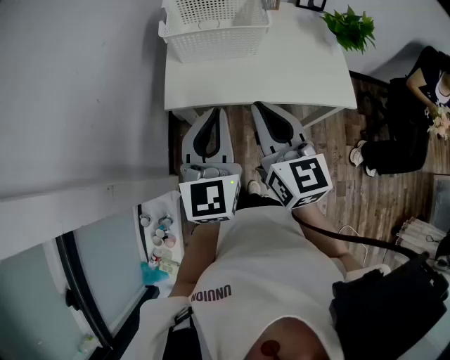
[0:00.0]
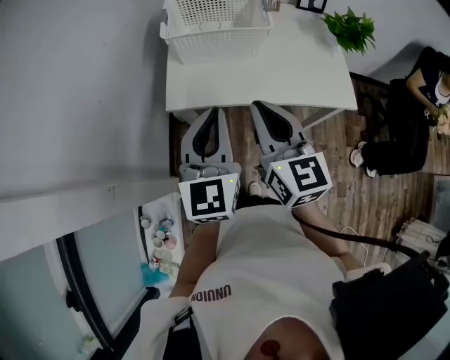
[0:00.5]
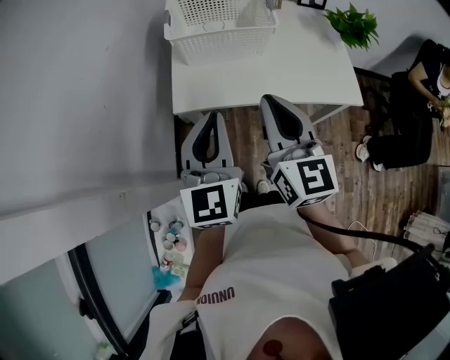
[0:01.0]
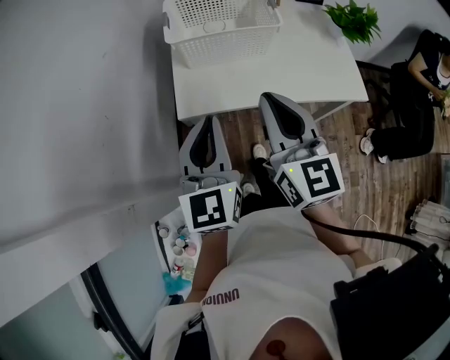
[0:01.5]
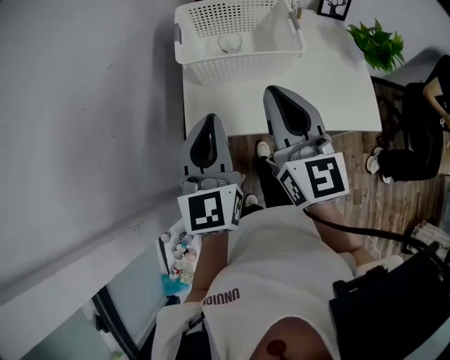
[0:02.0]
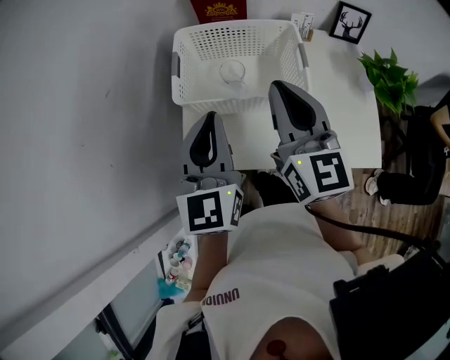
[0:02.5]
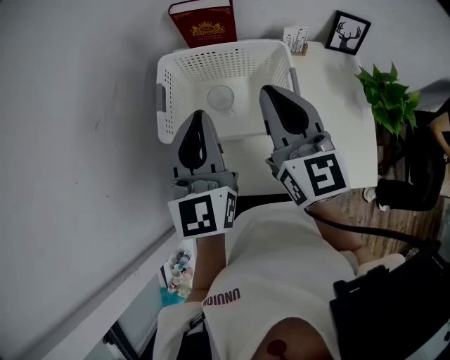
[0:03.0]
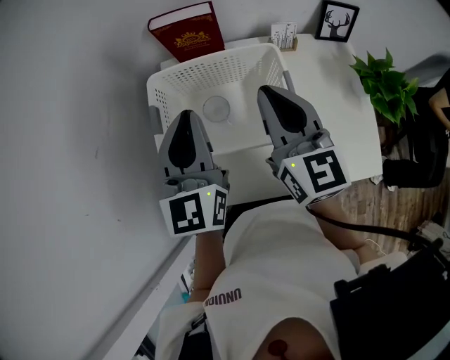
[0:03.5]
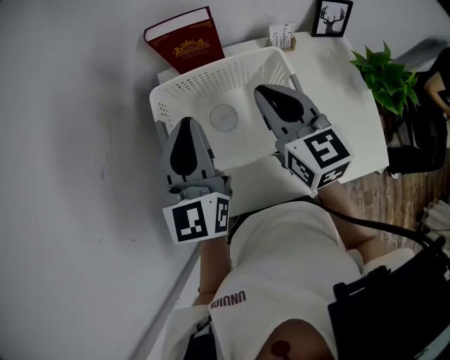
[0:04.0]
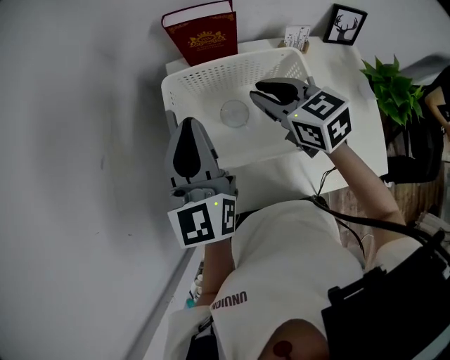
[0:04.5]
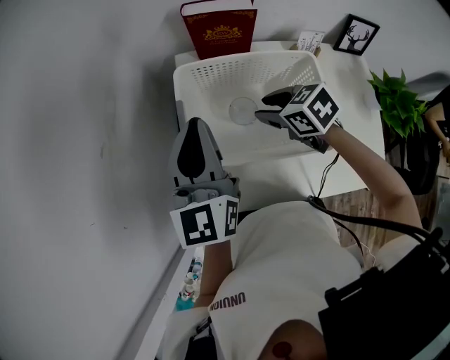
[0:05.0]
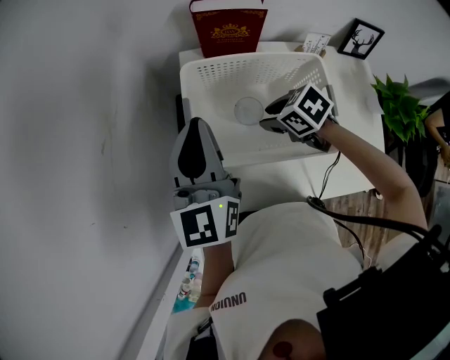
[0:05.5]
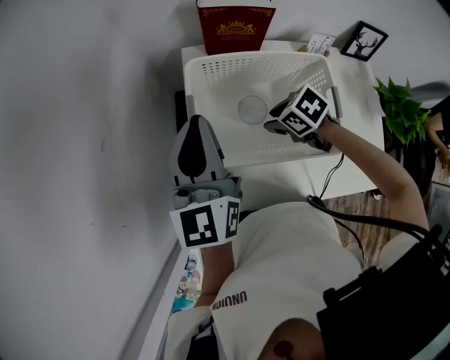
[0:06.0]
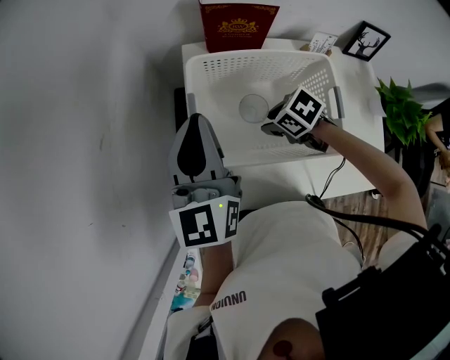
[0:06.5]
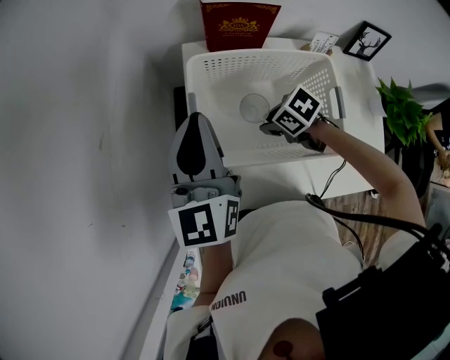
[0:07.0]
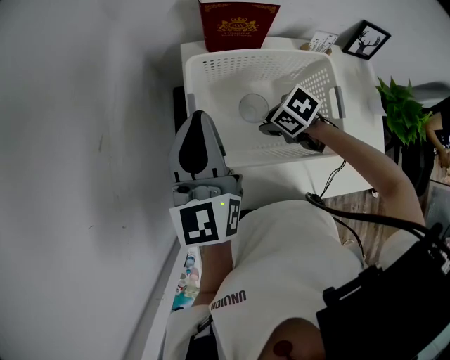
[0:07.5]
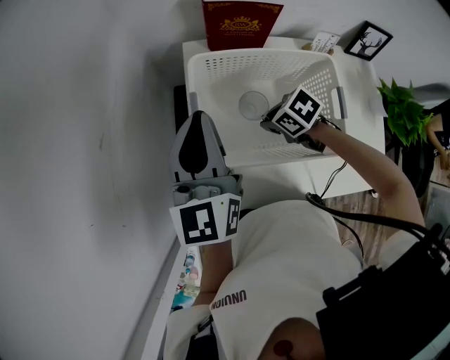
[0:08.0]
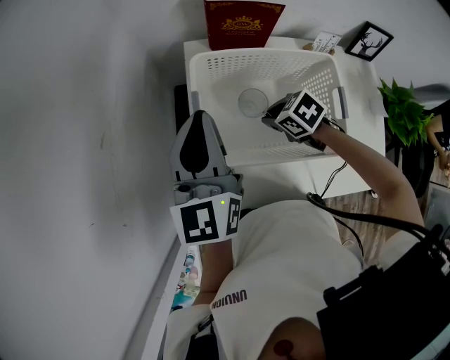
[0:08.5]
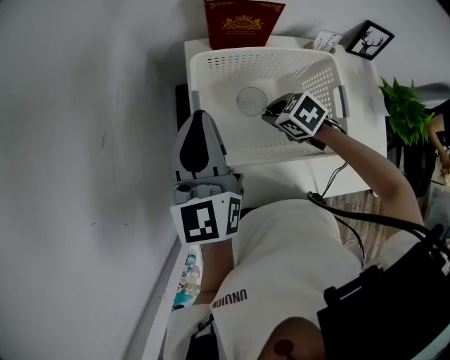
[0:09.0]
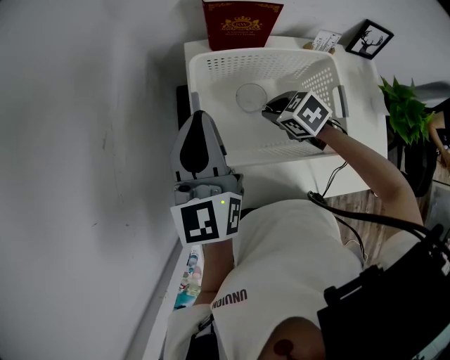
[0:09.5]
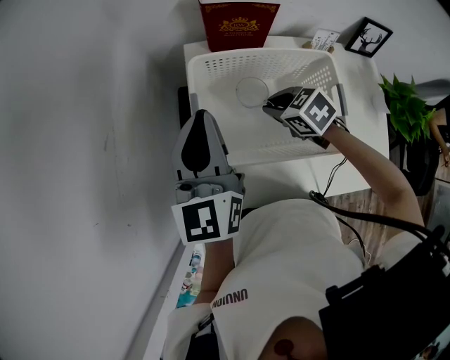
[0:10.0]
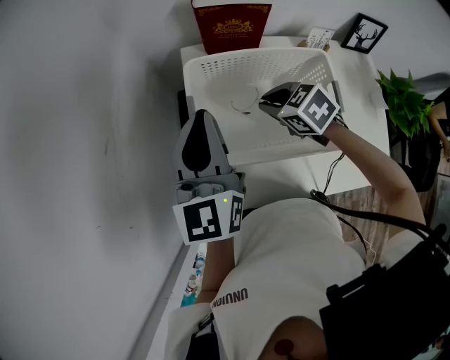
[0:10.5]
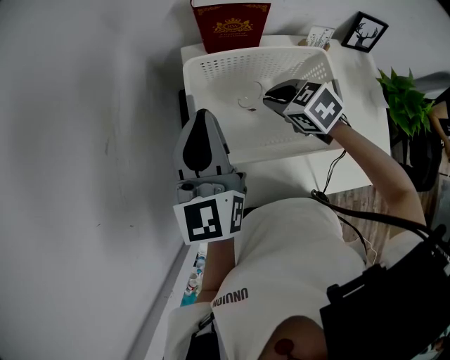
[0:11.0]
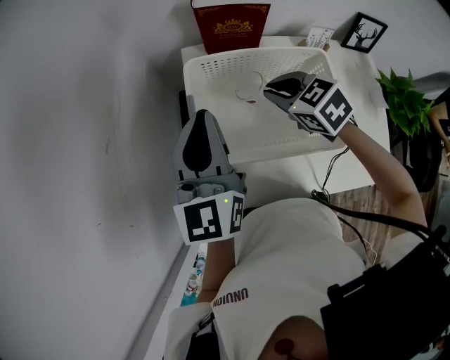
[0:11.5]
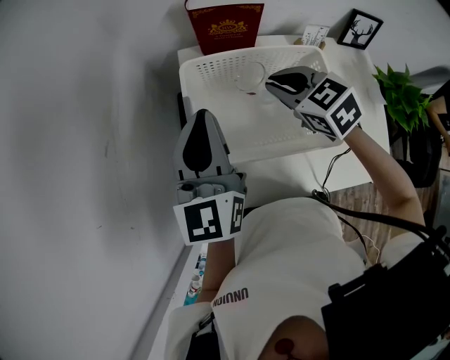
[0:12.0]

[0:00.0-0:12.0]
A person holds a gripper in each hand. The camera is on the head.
0.0 to 2.0 s: The left gripper shifts some 15 cm forward and to the left. Meanwhile the right gripper shifts about 15 cm forward.
2.0 to 4.0 s: The two grippers go approximately 30 cm forward.
4.0 to 6.0 s: The left gripper ends up about 10 cm from where it was. Meanwhile the right gripper goes about 20 cm downward, tips its fingers downward by approximately 50 degrees, and opens up.
6.0 to 8.0 s: The right gripper closes up.
8.0 to 10.0 s: The right gripper moves upward, some 5 cm.
10.0 to 12.0 s: The right gripper shifts some 10 cm upward.

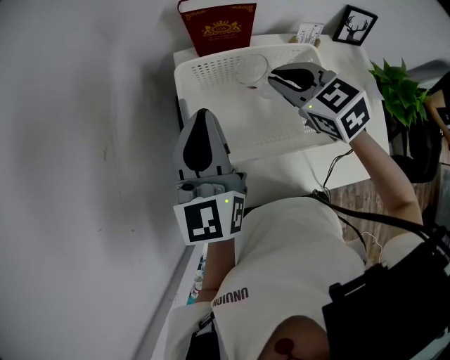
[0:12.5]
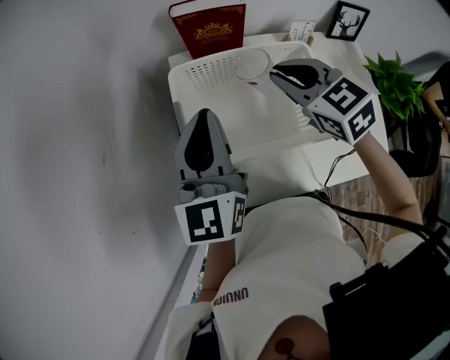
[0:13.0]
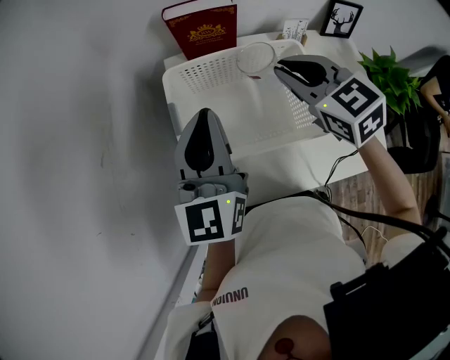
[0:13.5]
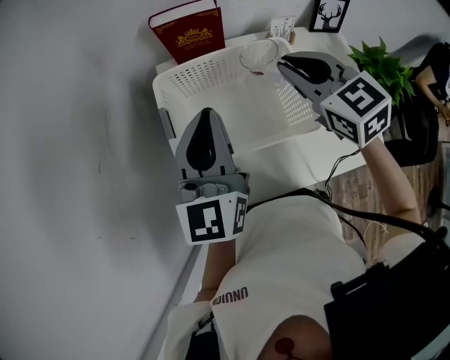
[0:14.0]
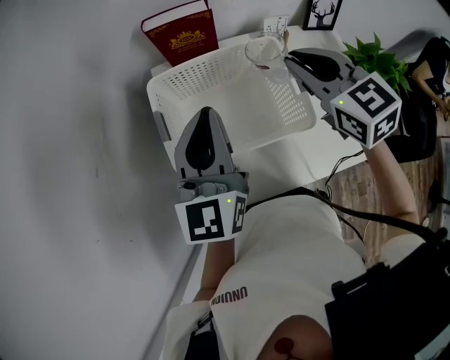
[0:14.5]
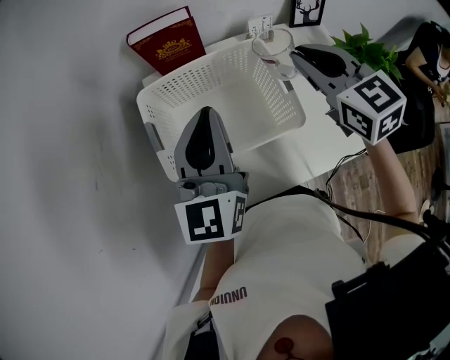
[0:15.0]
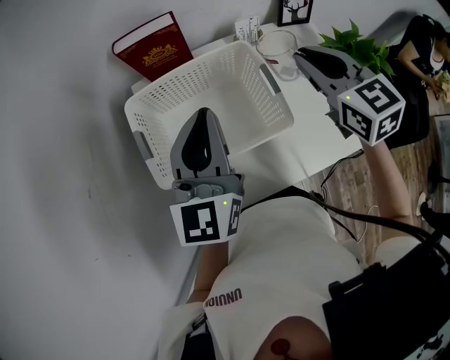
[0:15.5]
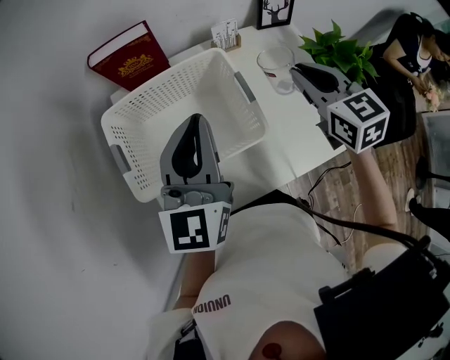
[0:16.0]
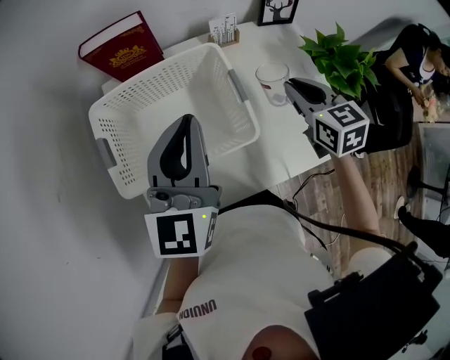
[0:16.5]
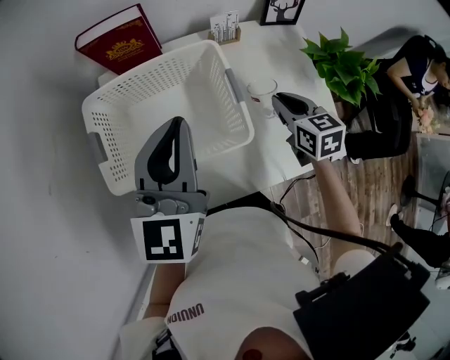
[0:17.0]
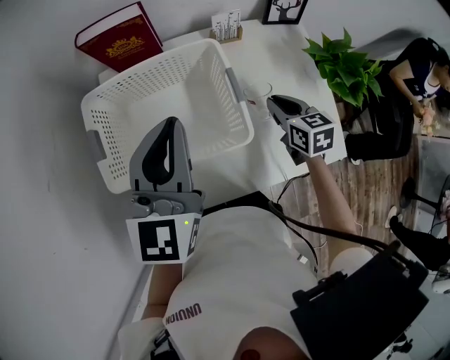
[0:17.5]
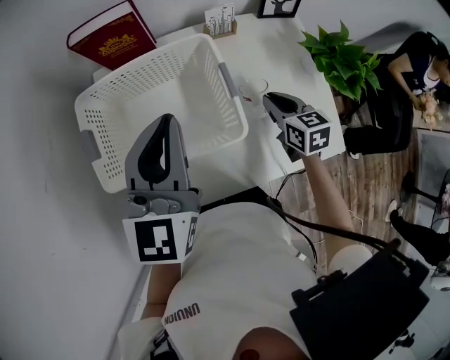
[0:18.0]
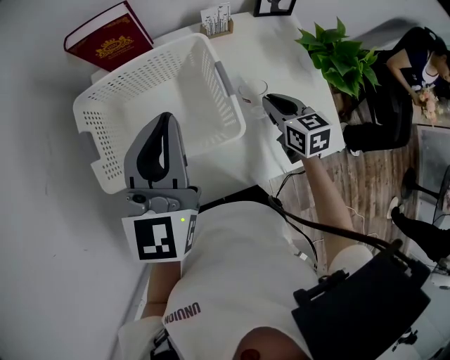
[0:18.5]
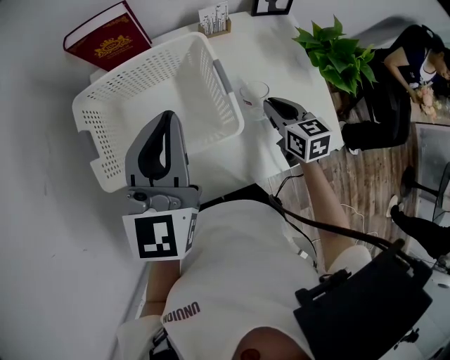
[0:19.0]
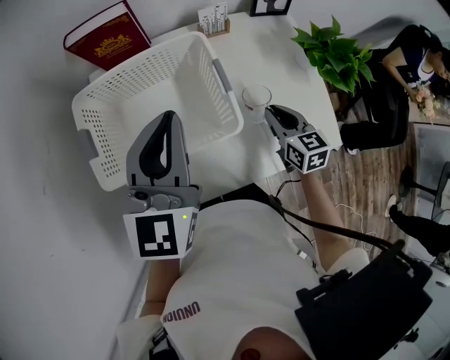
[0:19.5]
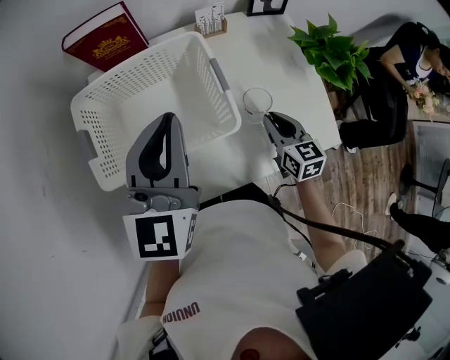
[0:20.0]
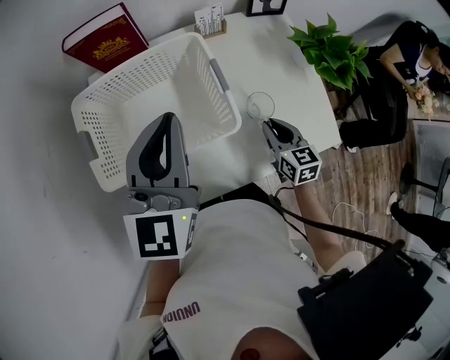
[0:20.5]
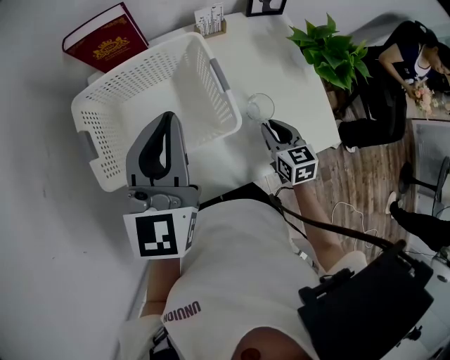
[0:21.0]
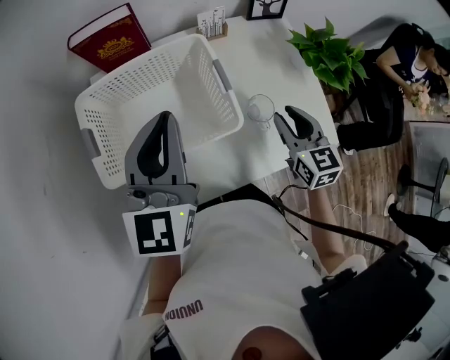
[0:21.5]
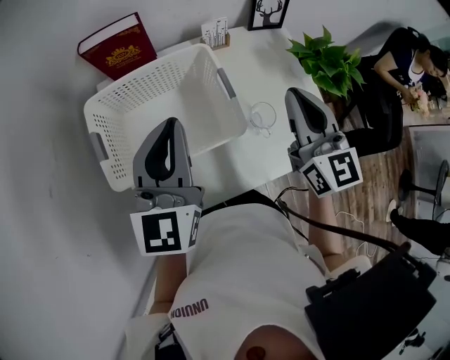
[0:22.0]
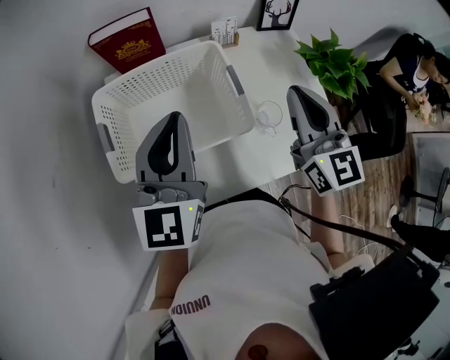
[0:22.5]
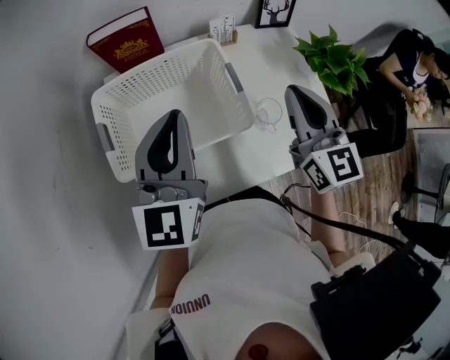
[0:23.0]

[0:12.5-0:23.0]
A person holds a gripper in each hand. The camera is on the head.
12.5 to 14.5 s: The right gripper goes roughly 10 cm to the right and upward, while the left gripper heads to the right, covering some 5 cm.
14.5 to 16.5 s: The right gripper travels to the right and downward by about 20 cm, and rotates roughly 20 degrees; the left gripper is displaced to the right by approximately 10 cm.
16.5 to 19.0 s: The right gripper shifts approximately 10 cm downward.
19.0 to 21.0 s: The right gripper heads backward, covering roughly 5 cm.
21.0 to 23.0 s: The right gripper shifts approximately 25 cm upward, and points its fingers about 30 degrees further upward.

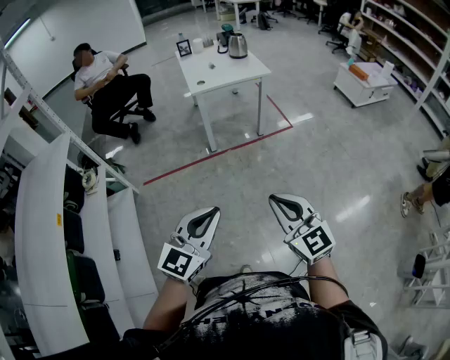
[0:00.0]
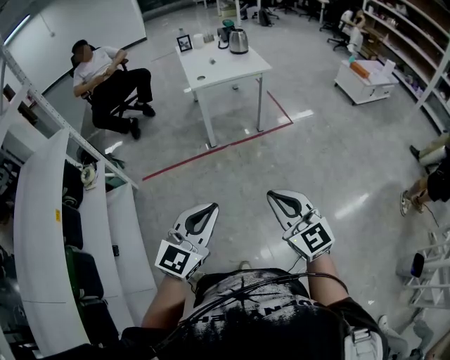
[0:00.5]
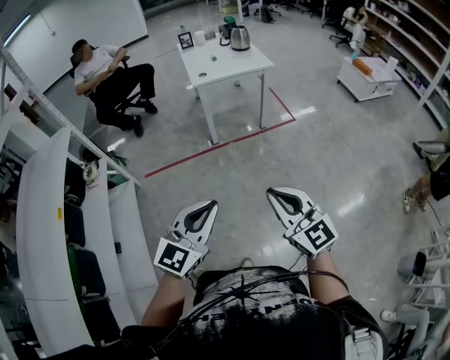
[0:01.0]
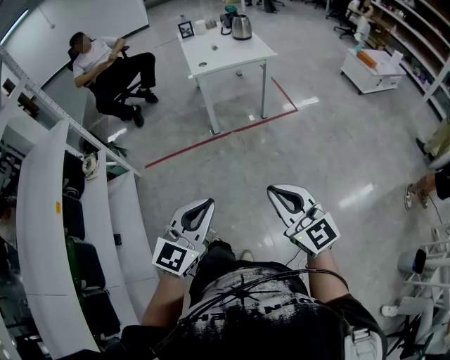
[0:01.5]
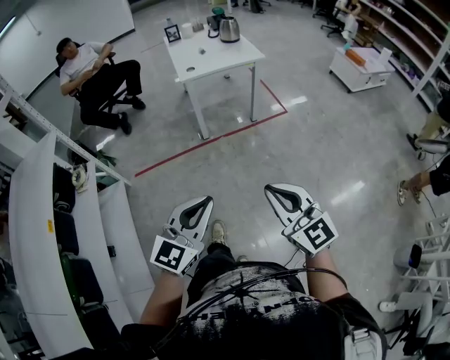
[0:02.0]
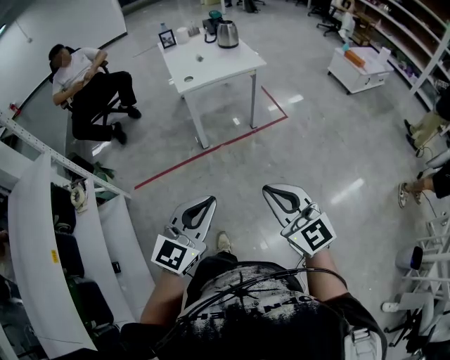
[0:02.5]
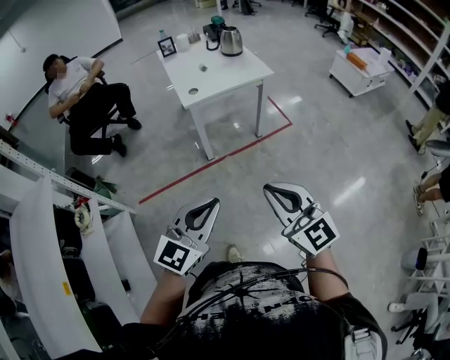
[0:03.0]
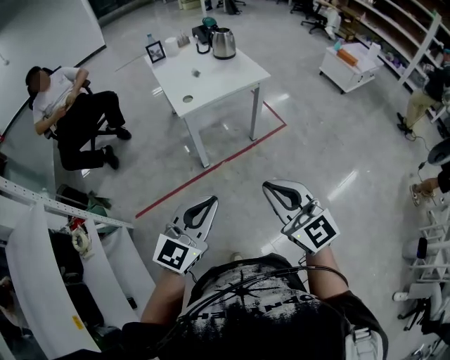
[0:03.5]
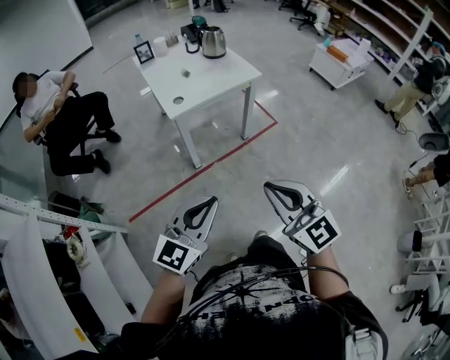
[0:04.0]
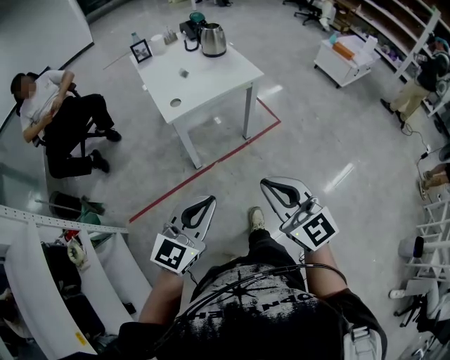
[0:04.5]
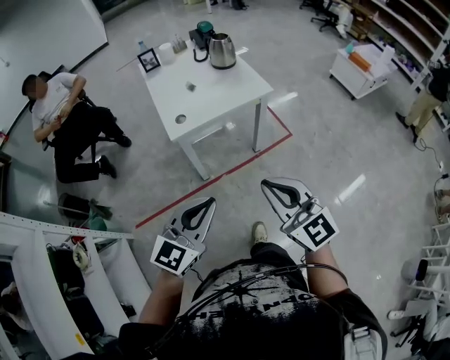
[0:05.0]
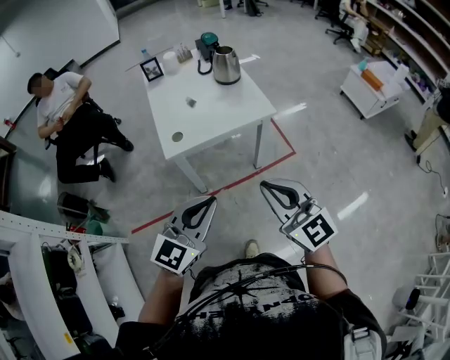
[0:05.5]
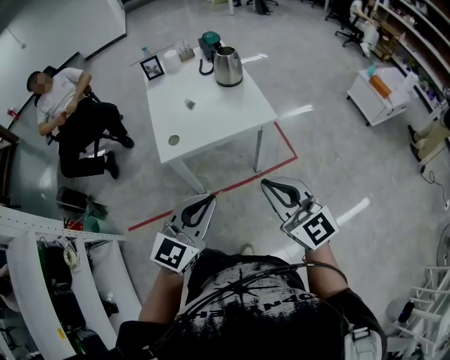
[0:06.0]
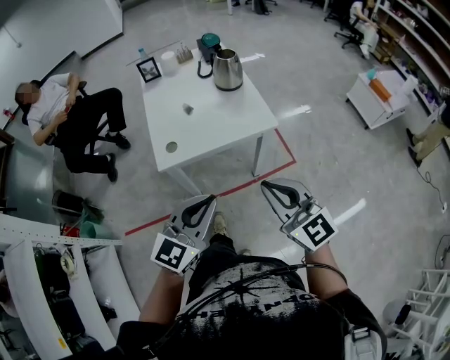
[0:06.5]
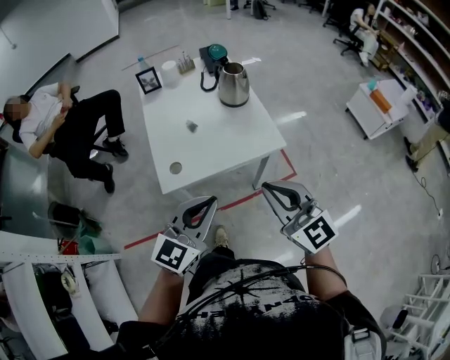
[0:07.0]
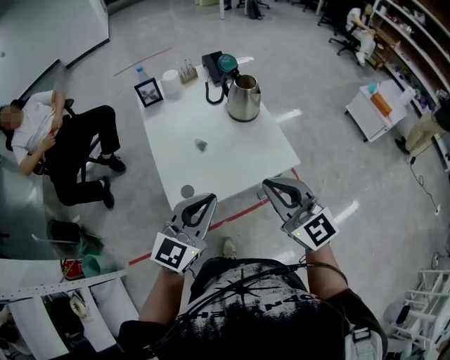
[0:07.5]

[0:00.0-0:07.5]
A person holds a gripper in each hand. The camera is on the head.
0.0 to 2.0 s: The grippers make only small movements.
2.0 to 4.0 s: The left gripper shifts approximately 30 cm forward; the right gripper moves forward and to the left, roughly 30 cm.
4.0 to 5.5 s: Both grippers travel together forward and to the right, about 30 cm.
5.5 to 7.5 s: The grippers both shift forward by approximately 30 cm.
